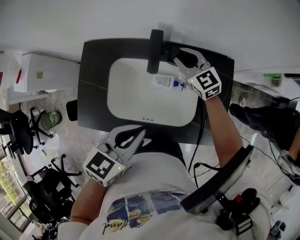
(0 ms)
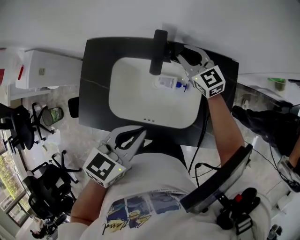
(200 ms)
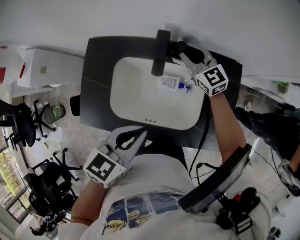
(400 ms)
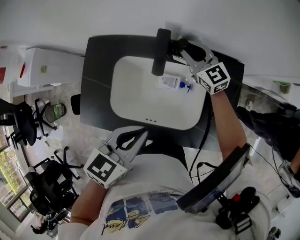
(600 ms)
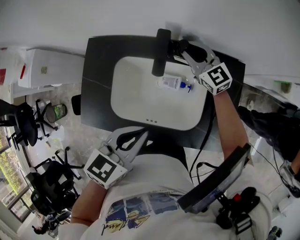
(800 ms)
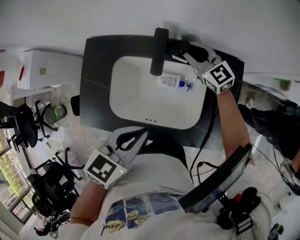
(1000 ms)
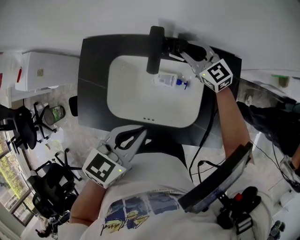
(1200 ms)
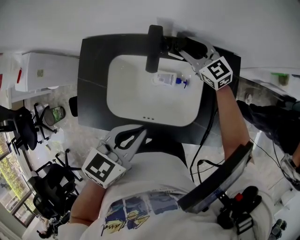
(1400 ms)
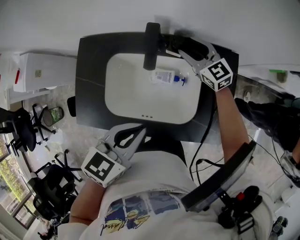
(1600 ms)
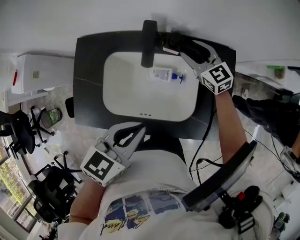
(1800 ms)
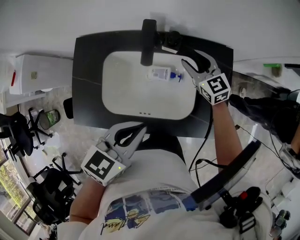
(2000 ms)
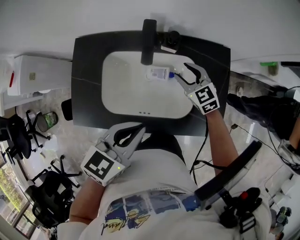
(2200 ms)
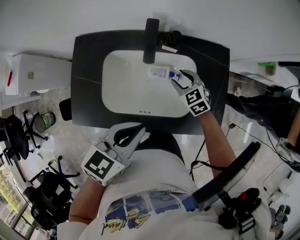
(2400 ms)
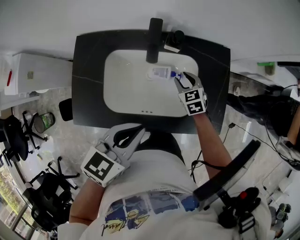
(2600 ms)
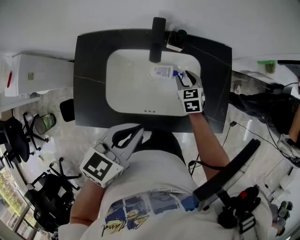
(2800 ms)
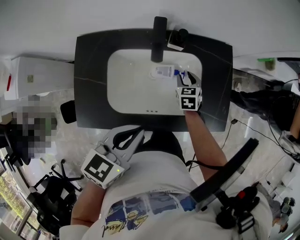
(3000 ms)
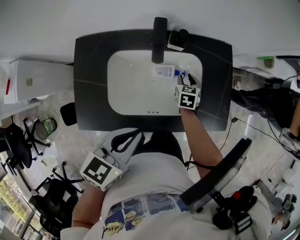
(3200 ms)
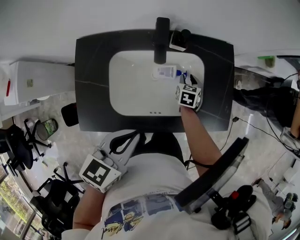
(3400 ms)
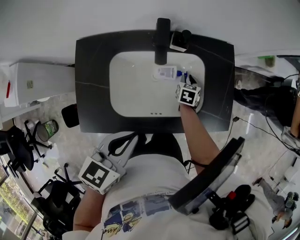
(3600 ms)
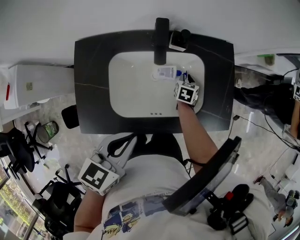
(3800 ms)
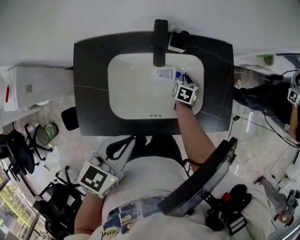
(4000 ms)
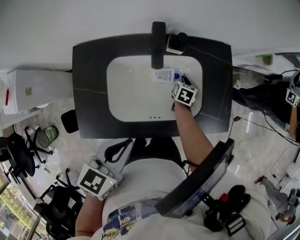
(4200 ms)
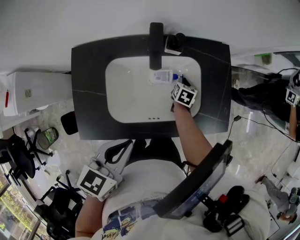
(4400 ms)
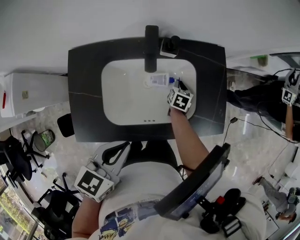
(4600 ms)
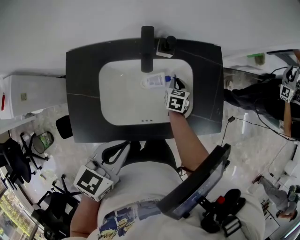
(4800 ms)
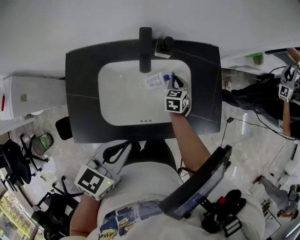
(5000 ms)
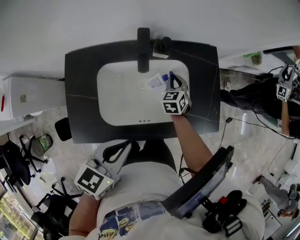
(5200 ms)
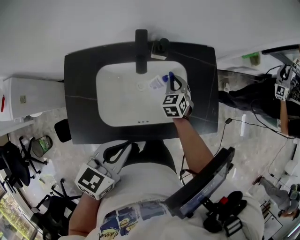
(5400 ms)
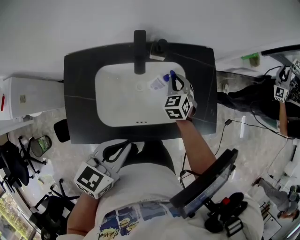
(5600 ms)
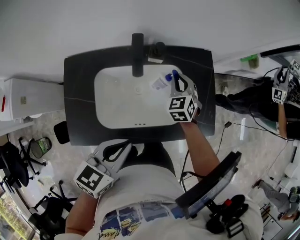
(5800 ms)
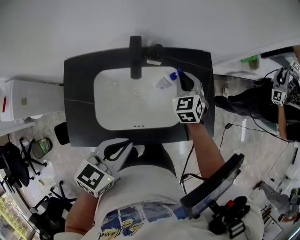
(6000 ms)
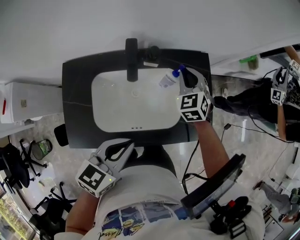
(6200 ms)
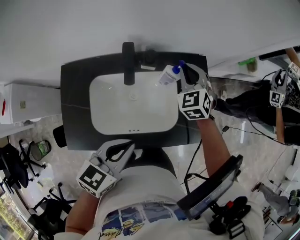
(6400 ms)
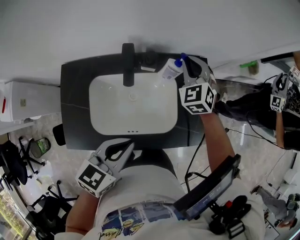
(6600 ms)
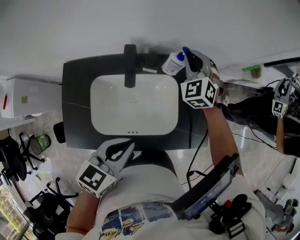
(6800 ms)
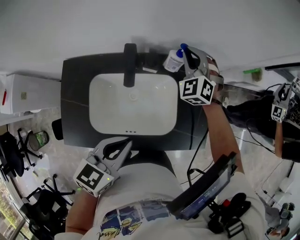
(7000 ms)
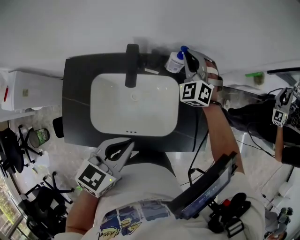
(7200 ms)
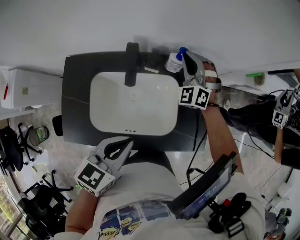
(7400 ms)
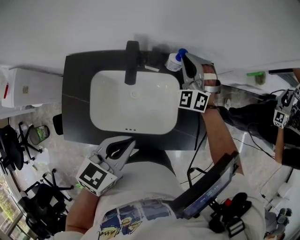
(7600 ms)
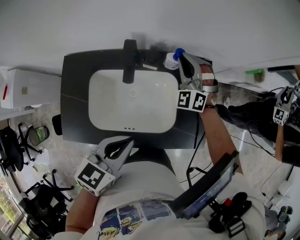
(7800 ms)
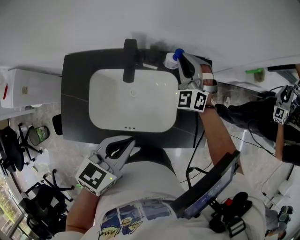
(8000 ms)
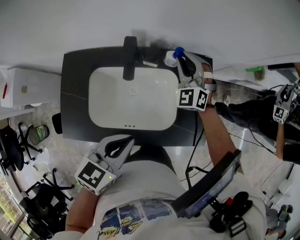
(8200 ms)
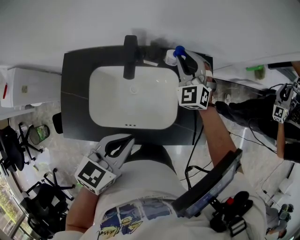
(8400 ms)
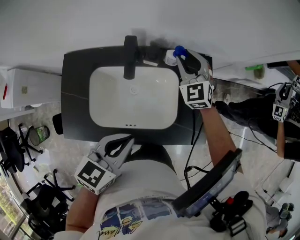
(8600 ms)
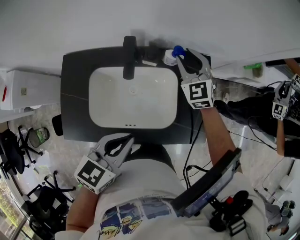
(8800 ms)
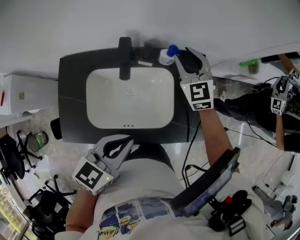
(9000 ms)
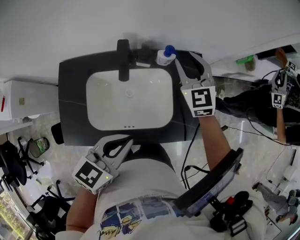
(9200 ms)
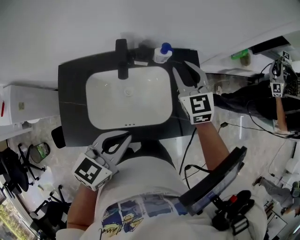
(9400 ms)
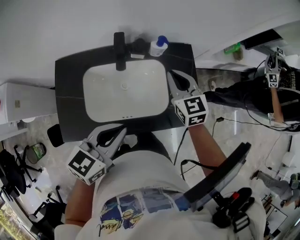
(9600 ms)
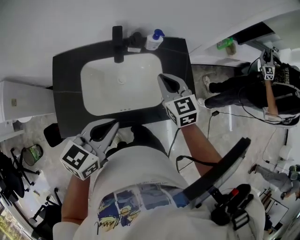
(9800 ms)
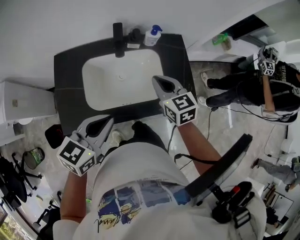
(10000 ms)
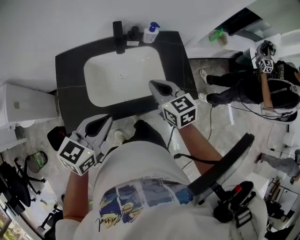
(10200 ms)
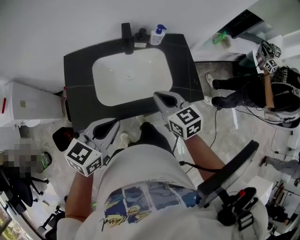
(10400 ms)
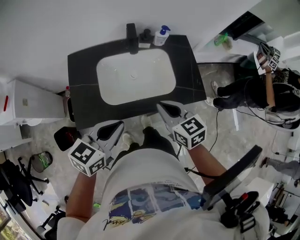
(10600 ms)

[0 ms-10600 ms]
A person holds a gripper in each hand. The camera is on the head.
0 ms to 1600 ms: The right gripper moves some 5 cm, and opens up.
1600 ms to 3000 ms: The left gripper moves about 5 cm; the right gripper shifts by about 20 cm, and points its fingers roughly 30 degrees further downward.
3000 ms to 4600 ms: The right gripper is displaced downward by roughly 5 cm, changes its angle by approximately 30 degrees, and closes its fingers.
4600 ms to 6000 ms: The left gripper changes place by some 5 cm. Meanwhile the right gripper shifts about 20 cm upward, and twists approximately 50 degrees counterclockwise, seen from behind.
6000 ms to 7600 ms: The right gripper goes about 10 cm forward and upward, and swivels roughly 40 degrees, while the left gripper goes some 5 cm forward.
7600 ms to 9000 ms: The right gripper turns by approximately 40 degrees, and opens up.
9000 ms to 10600 ms: The right gripper heads backward, covering some 40 cm, turns by about 40 degrees, and closes up. The left gripper shifts about 20 cm backward and to the left.

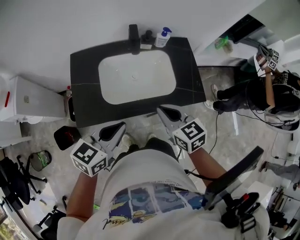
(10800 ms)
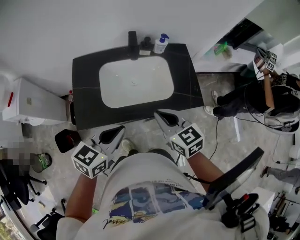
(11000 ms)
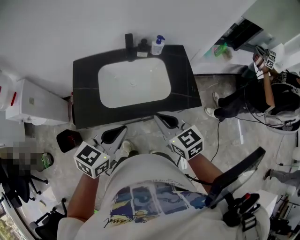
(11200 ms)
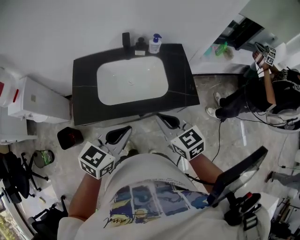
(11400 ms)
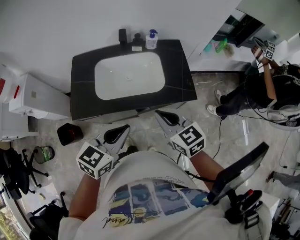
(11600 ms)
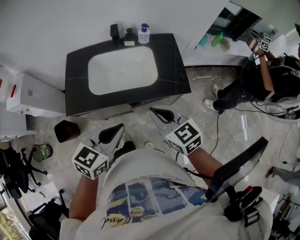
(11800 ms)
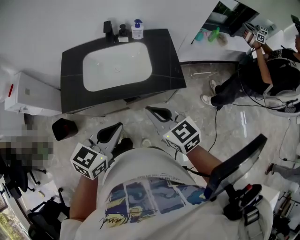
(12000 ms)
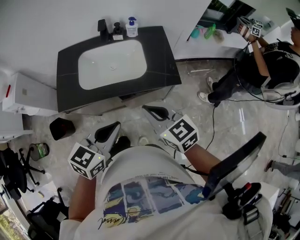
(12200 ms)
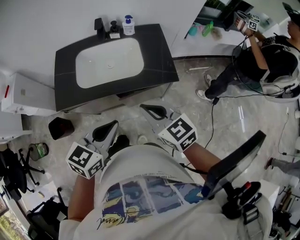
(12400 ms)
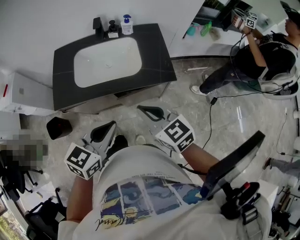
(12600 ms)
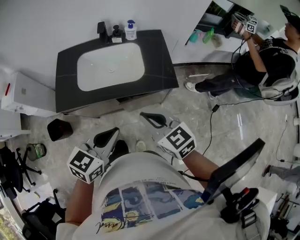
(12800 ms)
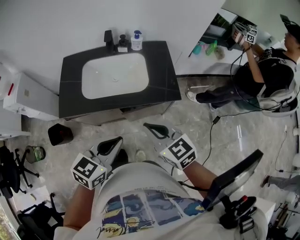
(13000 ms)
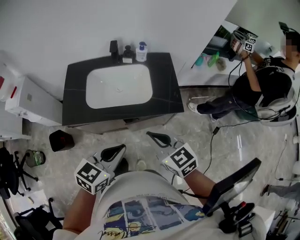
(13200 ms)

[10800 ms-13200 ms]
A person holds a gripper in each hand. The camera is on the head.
10800 ms to 12000 ms: The grippers both shift to the right and backward by roughly 15 cm.
12000 ms to 13200 ms: There are only small adjustments of the grippers.

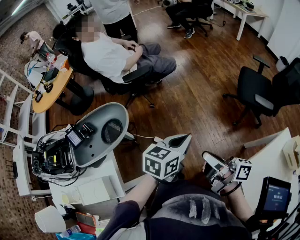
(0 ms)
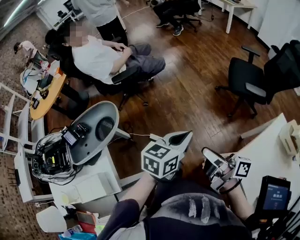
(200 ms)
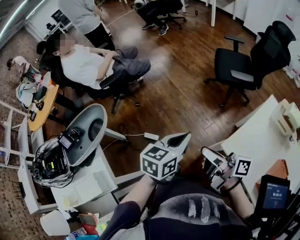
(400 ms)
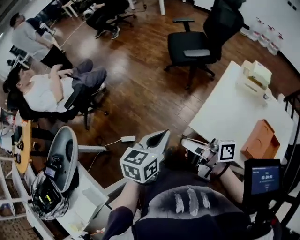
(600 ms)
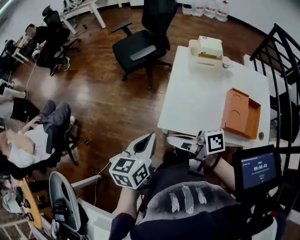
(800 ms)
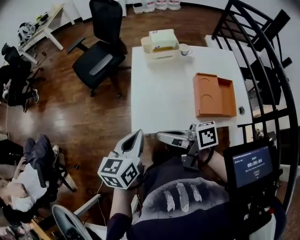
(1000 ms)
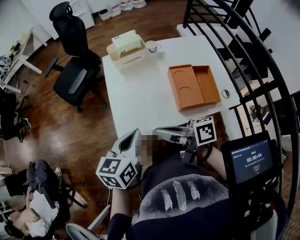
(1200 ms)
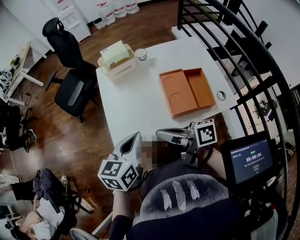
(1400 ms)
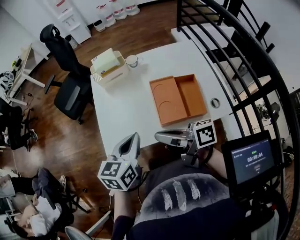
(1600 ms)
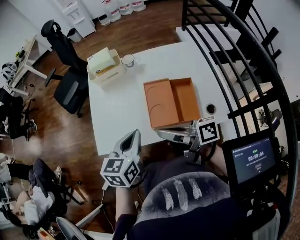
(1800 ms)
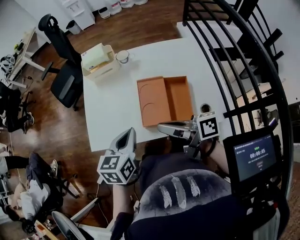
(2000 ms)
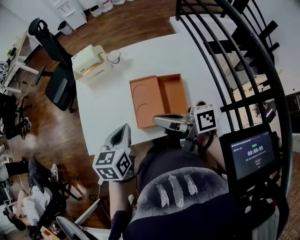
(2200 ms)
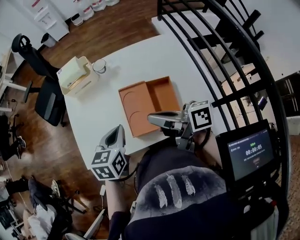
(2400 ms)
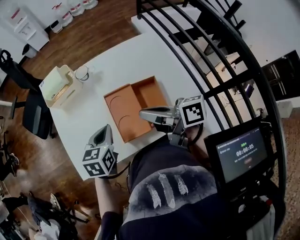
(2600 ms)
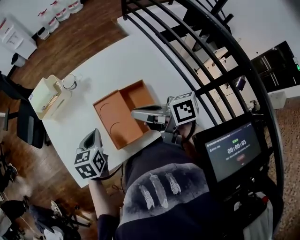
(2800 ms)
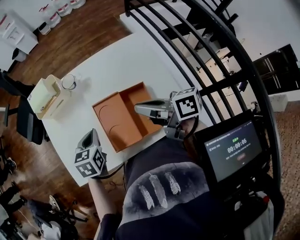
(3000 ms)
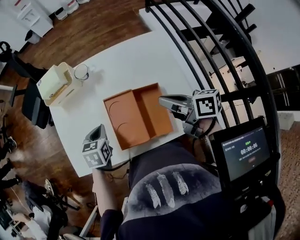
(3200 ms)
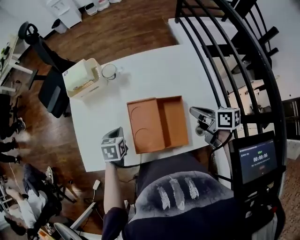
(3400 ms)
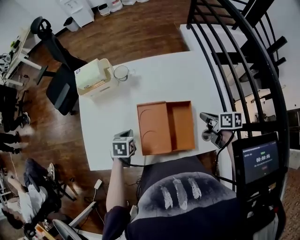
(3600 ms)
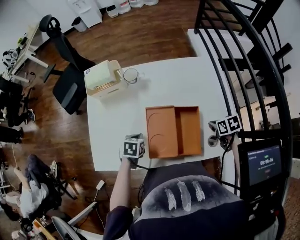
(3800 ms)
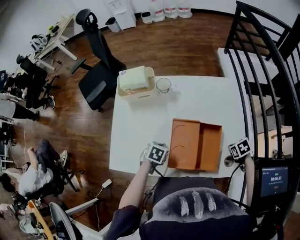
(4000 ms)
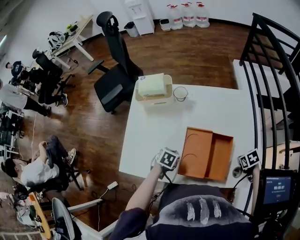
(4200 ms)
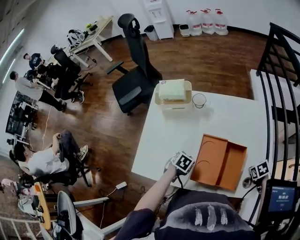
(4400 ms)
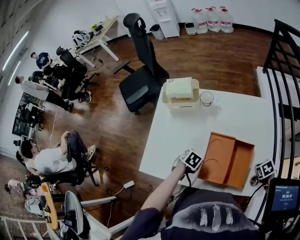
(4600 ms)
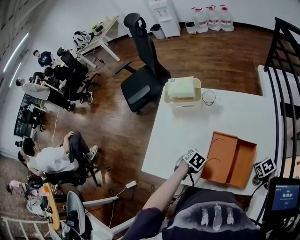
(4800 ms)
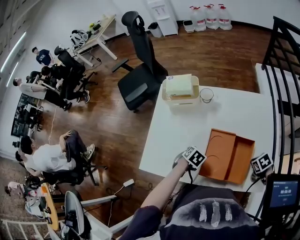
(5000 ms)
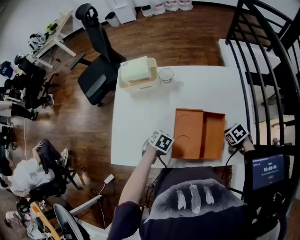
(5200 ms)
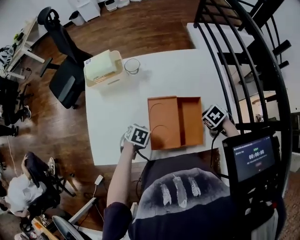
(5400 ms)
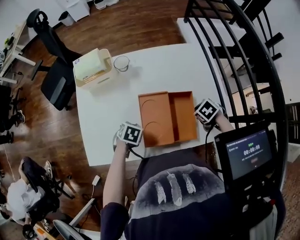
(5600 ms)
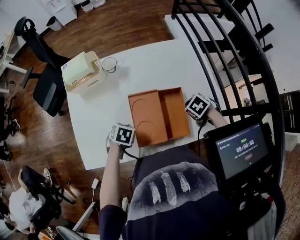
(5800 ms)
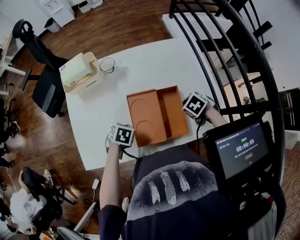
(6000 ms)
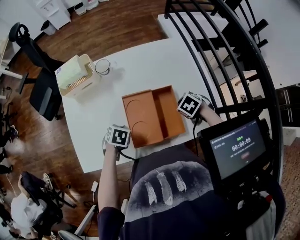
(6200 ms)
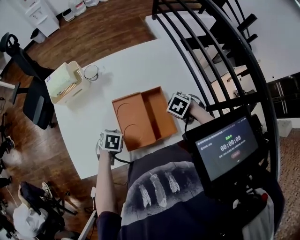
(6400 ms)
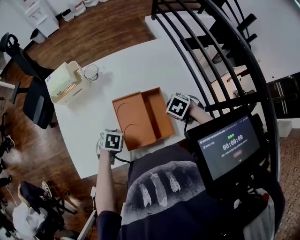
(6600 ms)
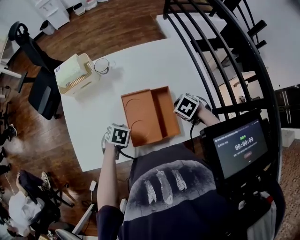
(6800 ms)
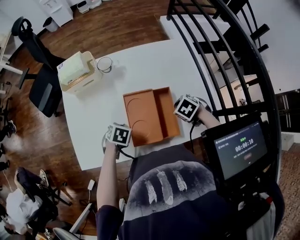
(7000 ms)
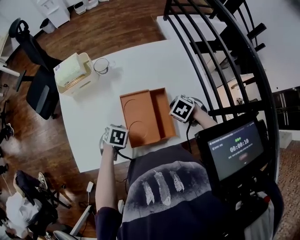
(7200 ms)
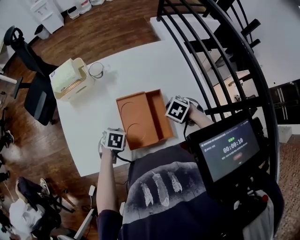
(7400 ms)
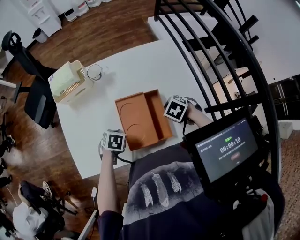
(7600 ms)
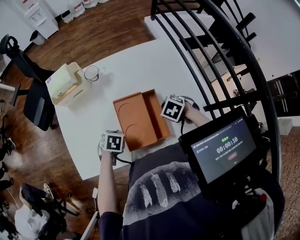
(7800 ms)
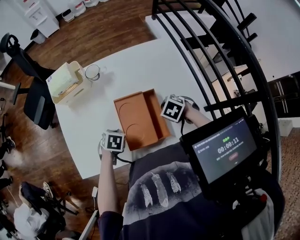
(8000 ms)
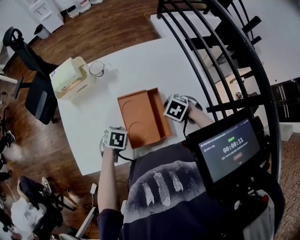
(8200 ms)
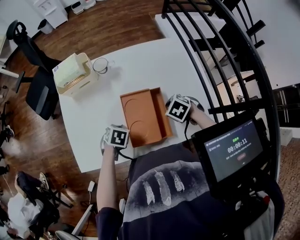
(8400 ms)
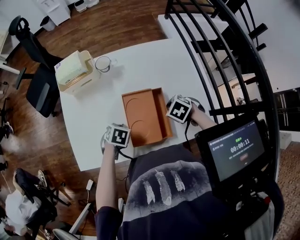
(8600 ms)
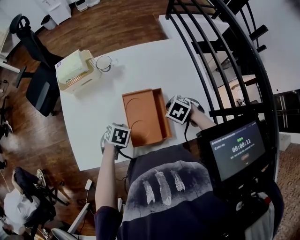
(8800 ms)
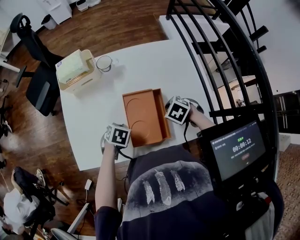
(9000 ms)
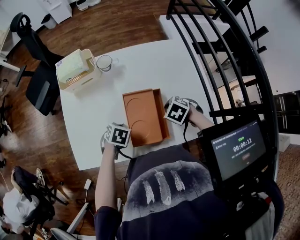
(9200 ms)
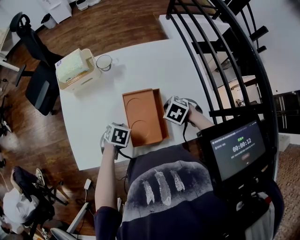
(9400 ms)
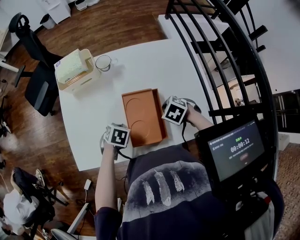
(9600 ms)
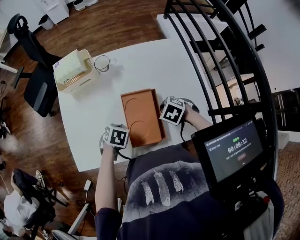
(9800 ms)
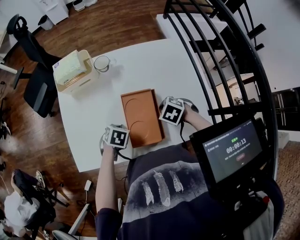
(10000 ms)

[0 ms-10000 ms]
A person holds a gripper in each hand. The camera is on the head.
0 ms to 1400 ms: The left gripper moves approximately 70 cm, and changes its angle by some 60 degrees.
1400 ms to 2800 ms: The left gripper shifts by some 25 cm.
2800 ms to 4200 ms: The left gripper heads downward, covering about 15 cm, and swivels roughly 20 degrees.

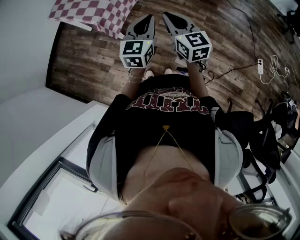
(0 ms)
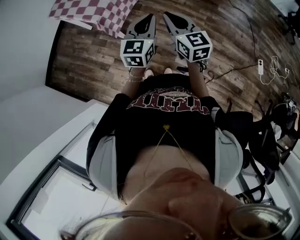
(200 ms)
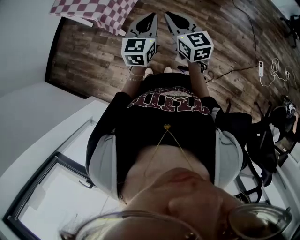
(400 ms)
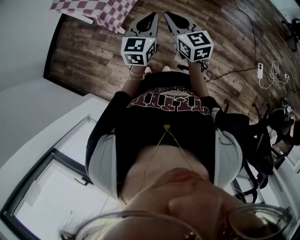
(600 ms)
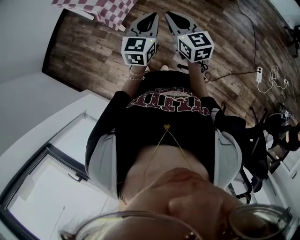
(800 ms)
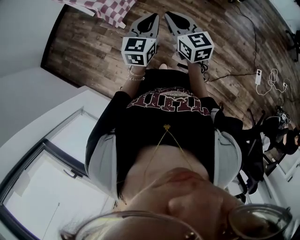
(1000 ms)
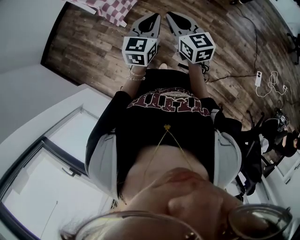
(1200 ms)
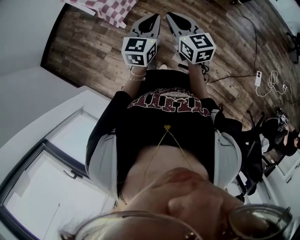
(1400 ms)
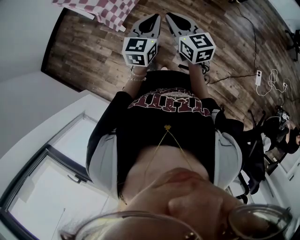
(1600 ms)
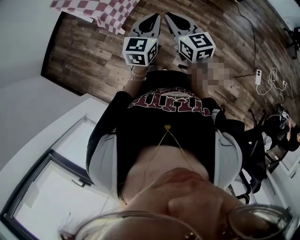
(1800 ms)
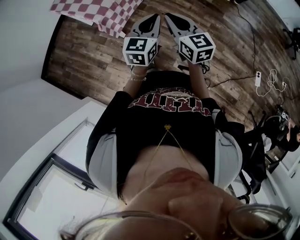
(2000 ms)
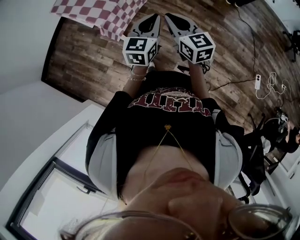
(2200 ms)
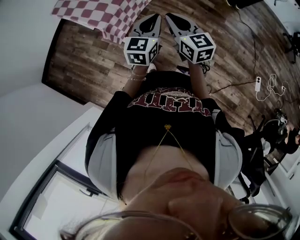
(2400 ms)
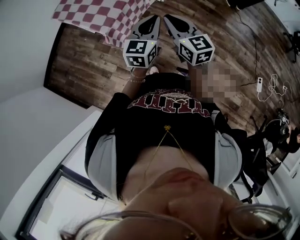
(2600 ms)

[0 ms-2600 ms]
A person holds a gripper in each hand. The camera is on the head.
0 ms to 1200 ms: The grippers stay close to where they were, moving slightly.
1200 ms to 2600 ms: The left gripper goes about 20 cm forward; the right gripper shifts approximately 20 cm forward and to the left.
